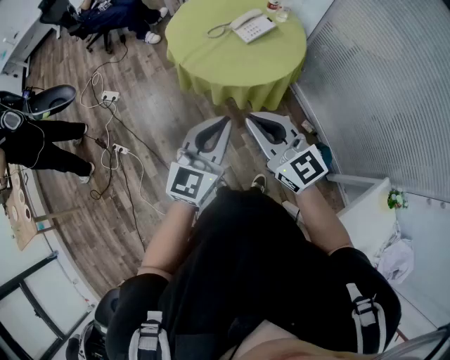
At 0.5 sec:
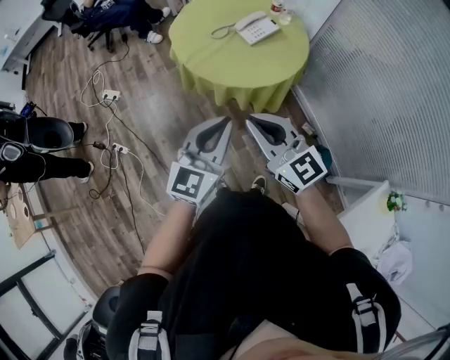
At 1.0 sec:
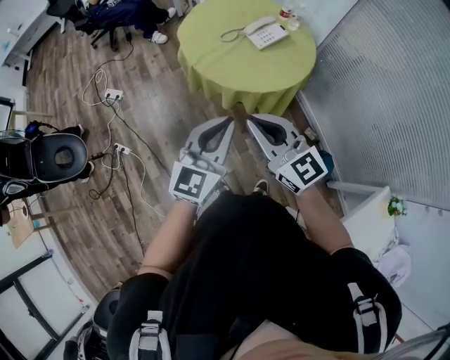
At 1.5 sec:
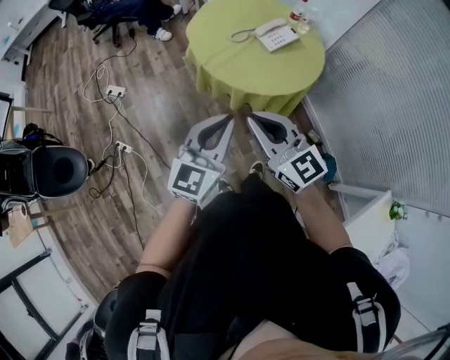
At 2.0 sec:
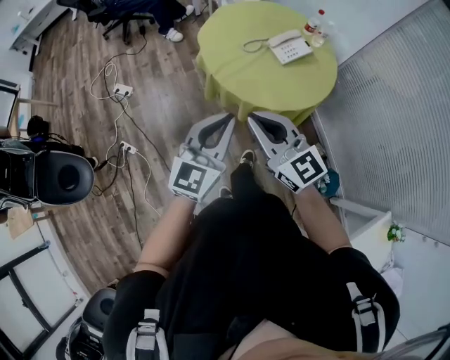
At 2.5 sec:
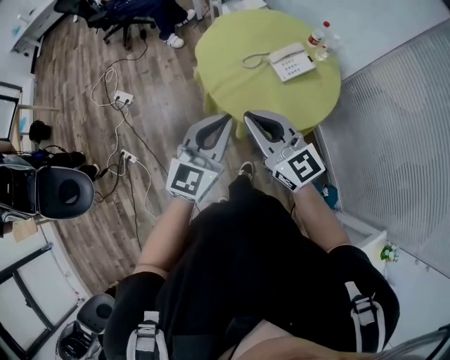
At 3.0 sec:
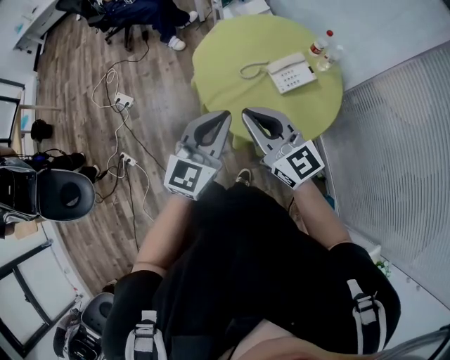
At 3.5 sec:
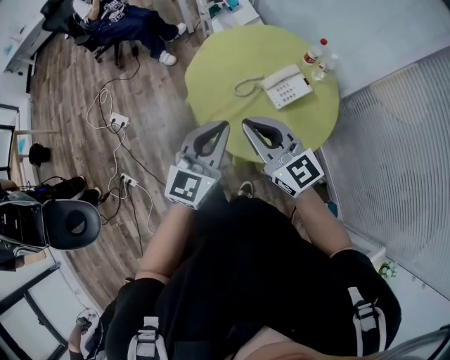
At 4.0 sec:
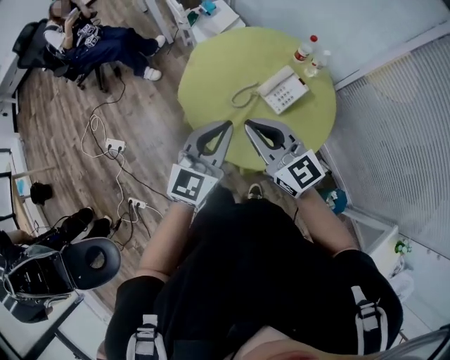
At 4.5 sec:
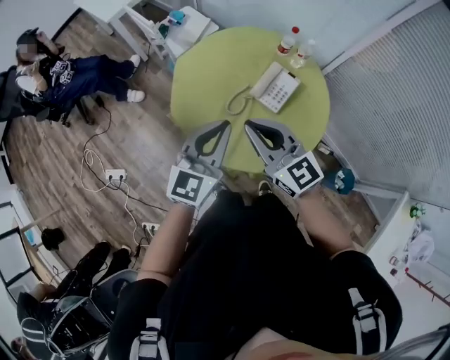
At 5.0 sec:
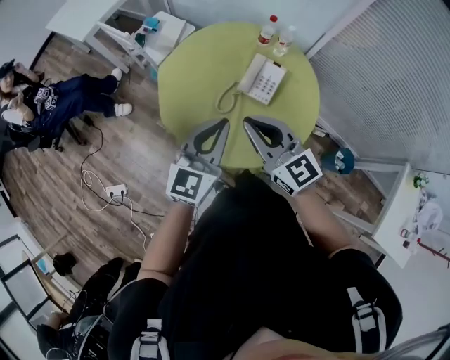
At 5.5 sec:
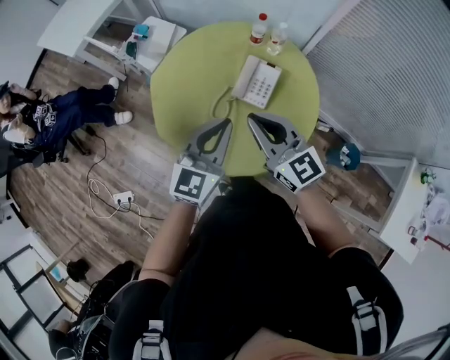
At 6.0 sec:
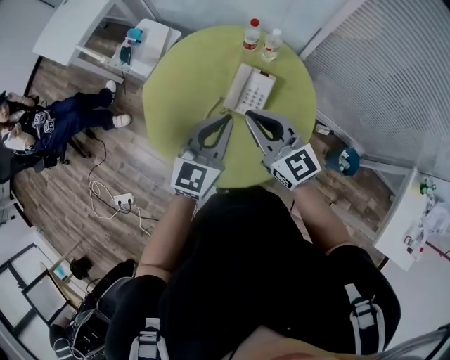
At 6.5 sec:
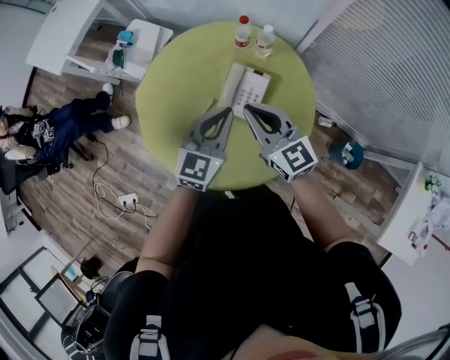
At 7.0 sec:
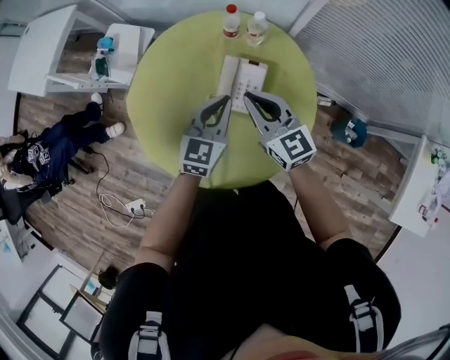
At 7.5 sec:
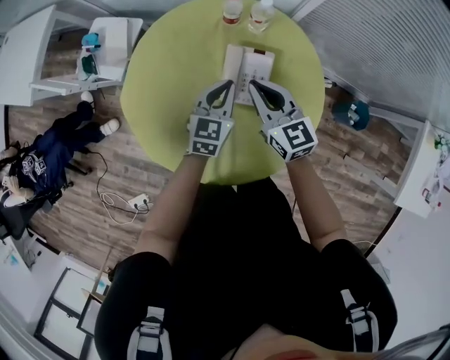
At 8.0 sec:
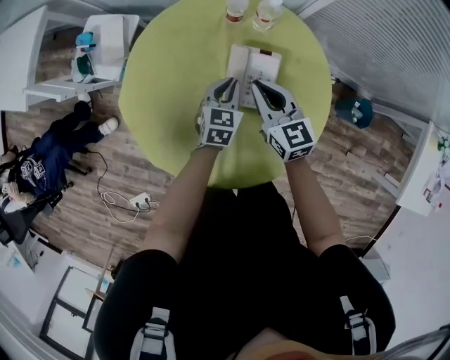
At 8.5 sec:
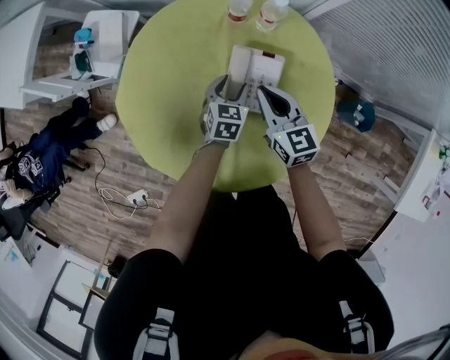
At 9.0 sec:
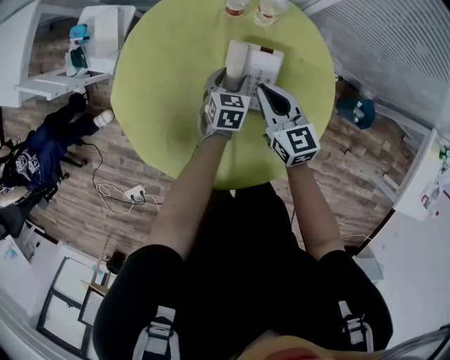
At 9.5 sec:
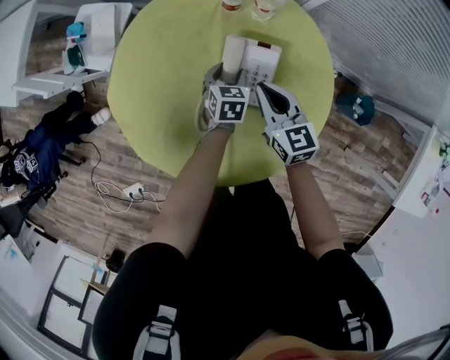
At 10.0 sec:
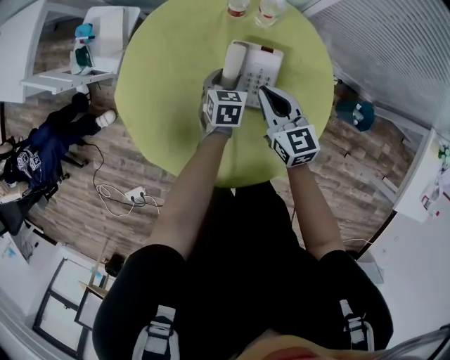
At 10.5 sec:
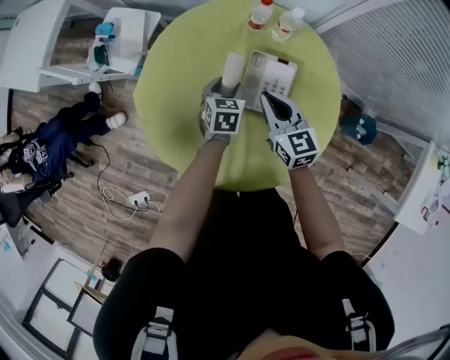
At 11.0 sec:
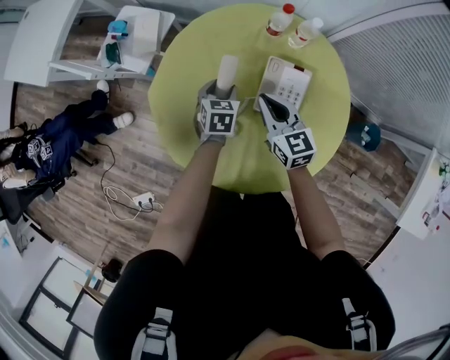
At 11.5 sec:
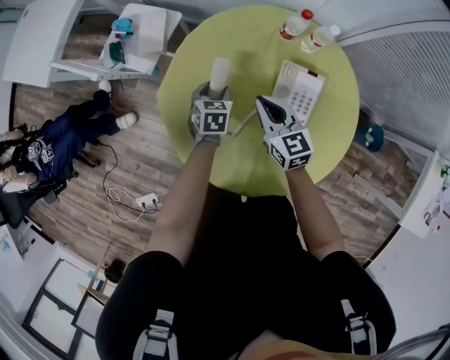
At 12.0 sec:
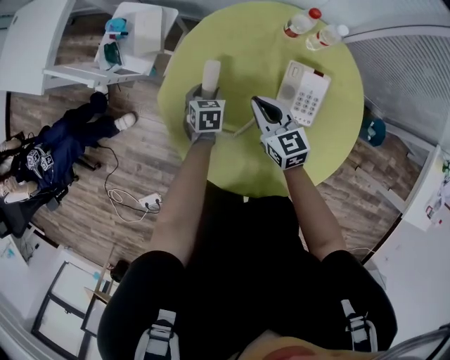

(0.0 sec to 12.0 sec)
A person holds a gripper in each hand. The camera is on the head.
0.0 sec - 2.0 sec: The right gripper goes roughly 15 cm to the left and forward. The left gripper moves forward and to the left, roughly 15 cm.
2.0 sec - 4.0 sec: Both grippers travel together forward, some 35 cm.
4.0 sec - 6.0 sec: The left gripper changes place by some 20 cm, and changes its angle by about 30 degrees. The right gripper changes place by some 20 cm, and swivels about 30 degrees.
6.0 sec - 8.0 sec: The two grippers go approximately 30 cm downward and forward. The left gripper swivels about 30 degrees. Meanwhile the right gripper changes its angle by some 30 degrees.
8.0 sec - 10.0 sec: The left gripper is displaced downward by some 5 cm, and opens its fingers.
10.0 sec - 12.0 sec: The two grippers go approximately 20 cm to the left.

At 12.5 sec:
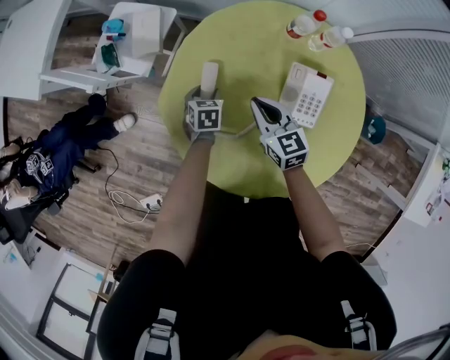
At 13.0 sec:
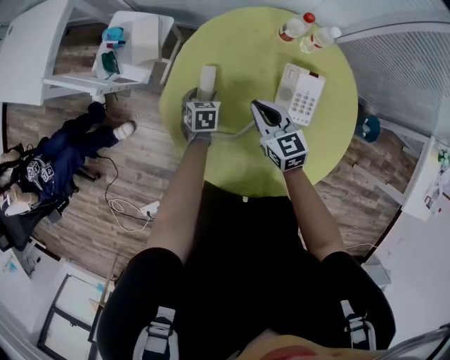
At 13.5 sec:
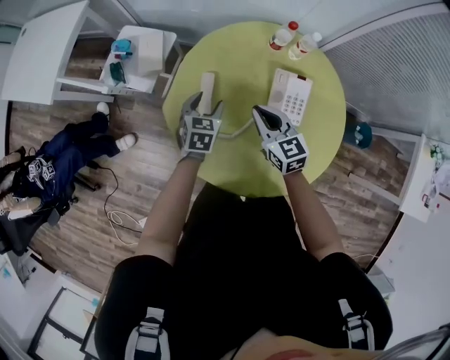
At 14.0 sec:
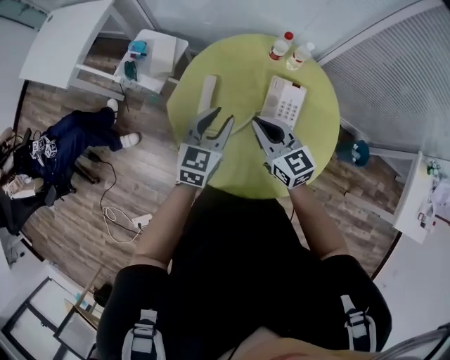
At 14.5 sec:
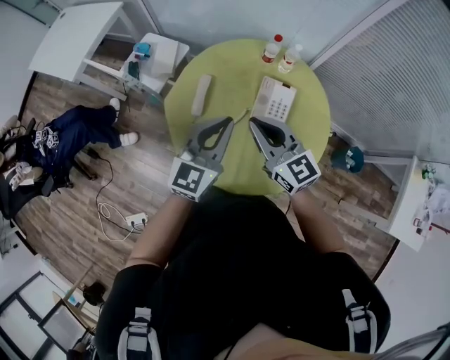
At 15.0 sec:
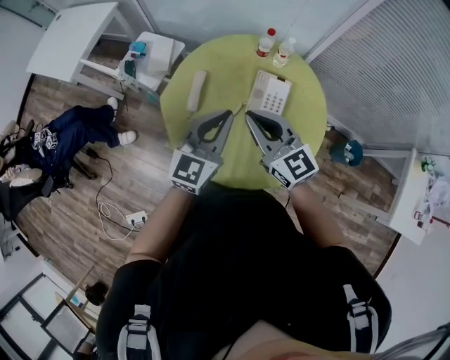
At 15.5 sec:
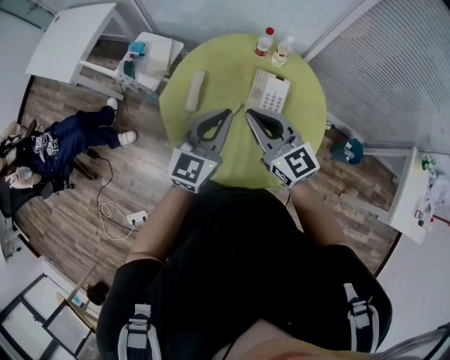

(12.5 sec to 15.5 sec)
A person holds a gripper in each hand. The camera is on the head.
12.5 sec - 14.0 sec: The right gripper shifts some 20 cm upward and backward, while the left gripper is displaced upward by some 35 cm, and angles its fingers upward, by about 40 degrees.
14.0 sec - 15.5 sec: The left gripper heads upward, backward and to the right, covering about 15 cm, and closes its fingers, while the right gripper shifts some 10 cm upward and backward.

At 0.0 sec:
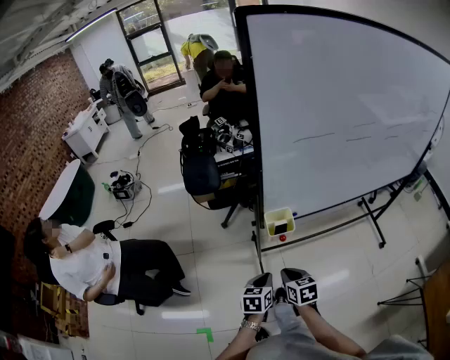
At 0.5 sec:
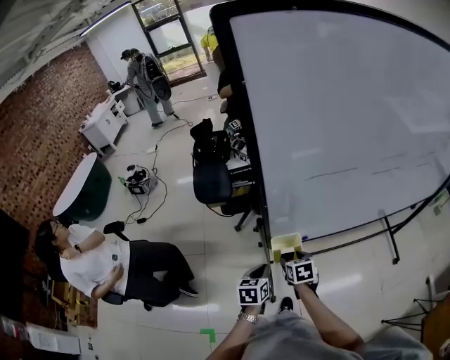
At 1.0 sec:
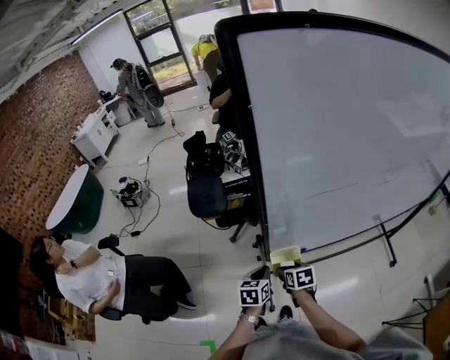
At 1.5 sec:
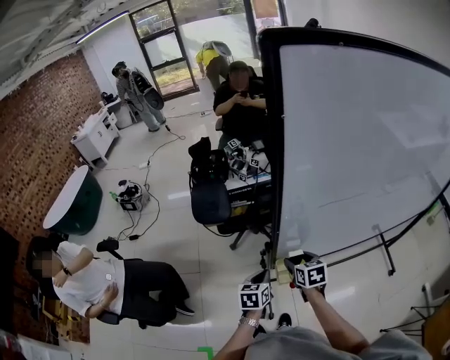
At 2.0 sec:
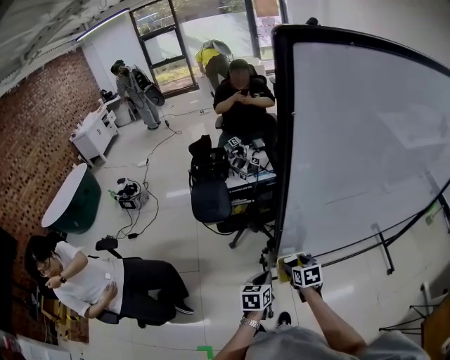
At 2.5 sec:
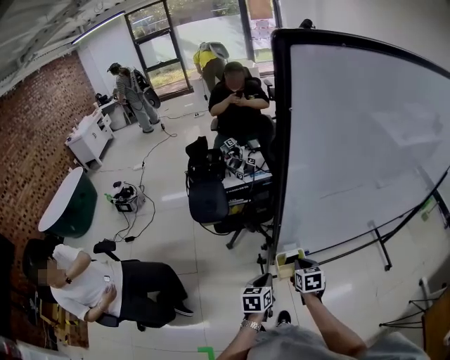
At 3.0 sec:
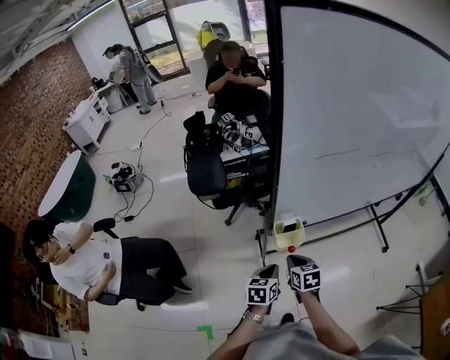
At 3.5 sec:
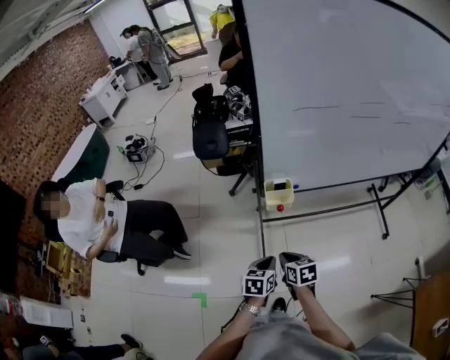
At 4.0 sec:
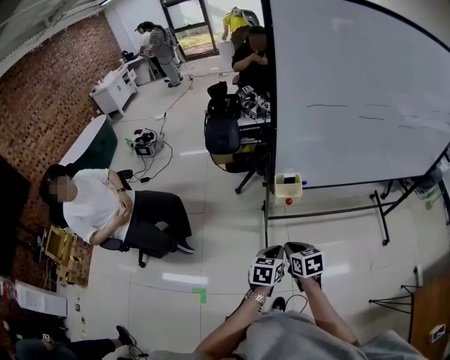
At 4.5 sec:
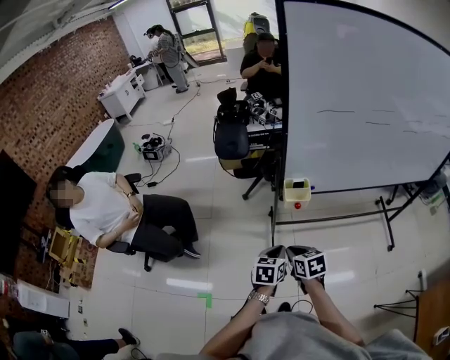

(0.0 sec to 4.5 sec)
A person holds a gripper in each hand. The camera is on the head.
0.0 sec - 2.0 sec: Both grippers travel together forward, some 20 cm. The right gripper opens its fingers.
2.0 sec - 4.5 sec: The two grippers go about 30 cm backward. The right gripper closes up.

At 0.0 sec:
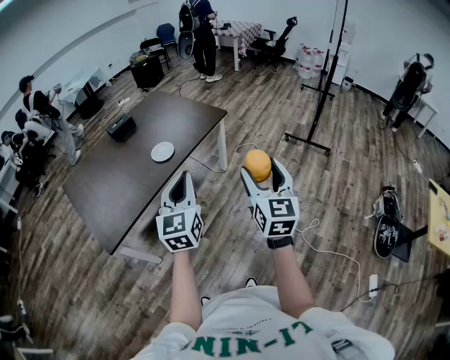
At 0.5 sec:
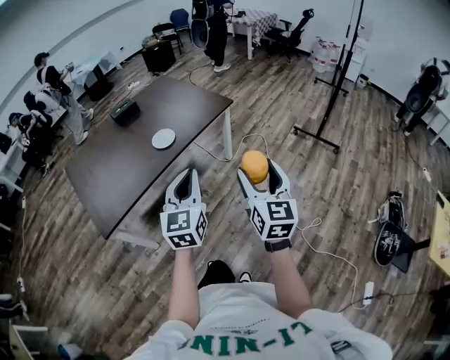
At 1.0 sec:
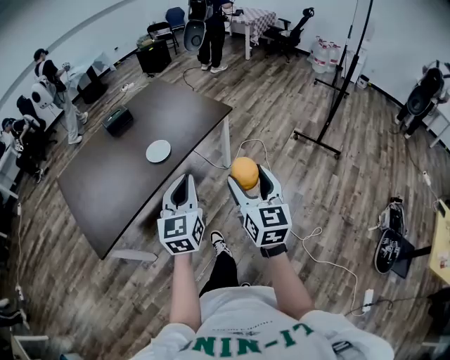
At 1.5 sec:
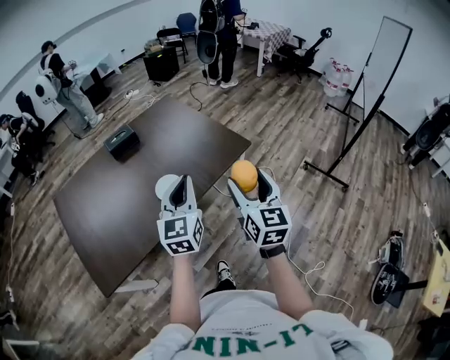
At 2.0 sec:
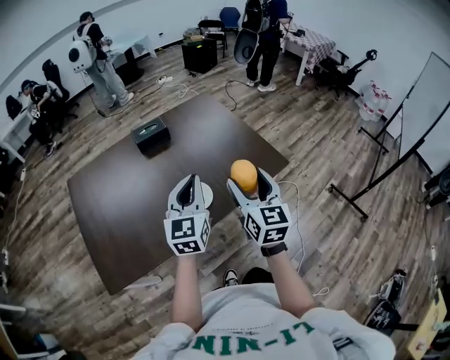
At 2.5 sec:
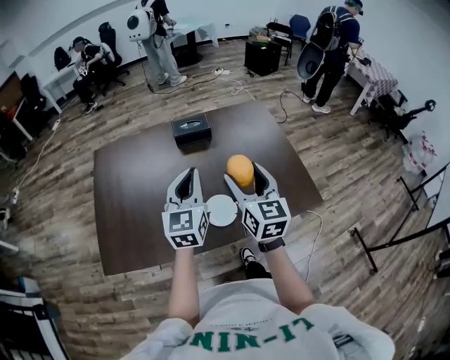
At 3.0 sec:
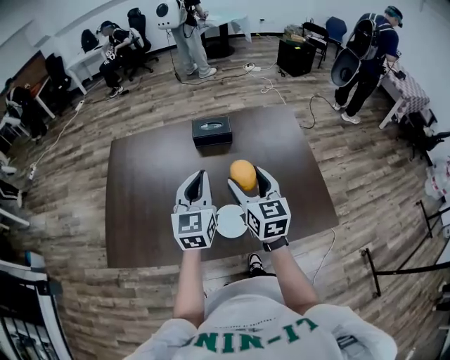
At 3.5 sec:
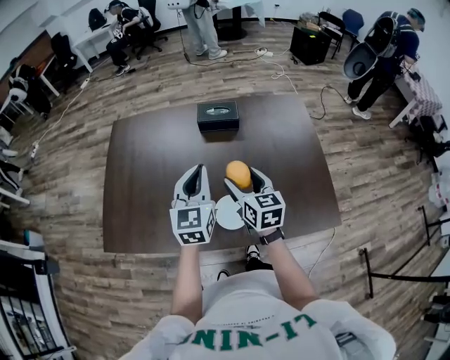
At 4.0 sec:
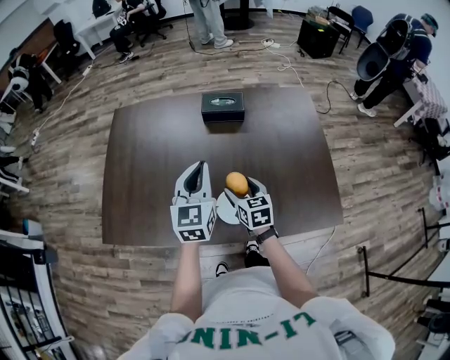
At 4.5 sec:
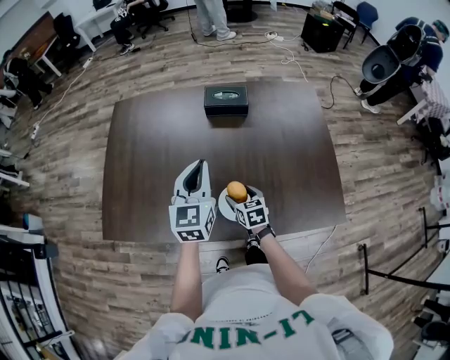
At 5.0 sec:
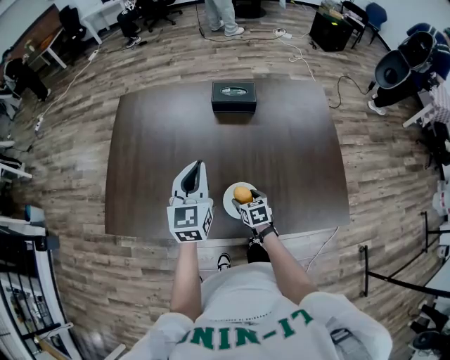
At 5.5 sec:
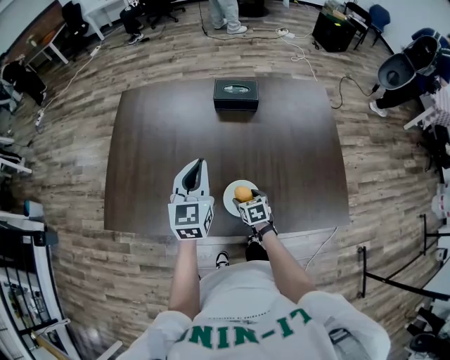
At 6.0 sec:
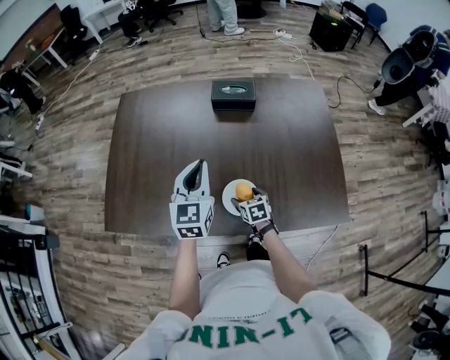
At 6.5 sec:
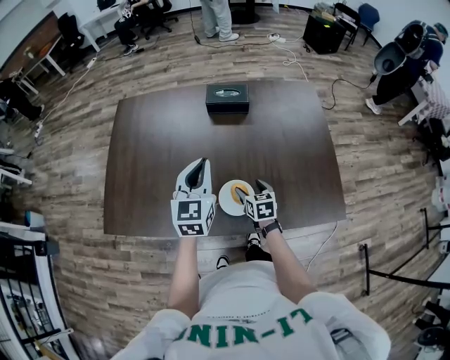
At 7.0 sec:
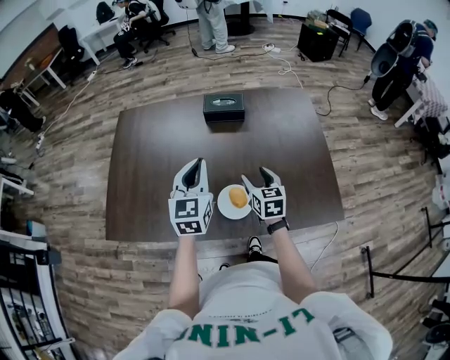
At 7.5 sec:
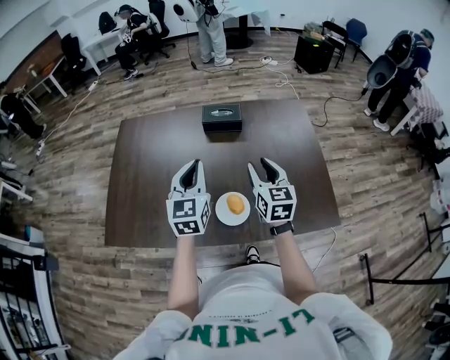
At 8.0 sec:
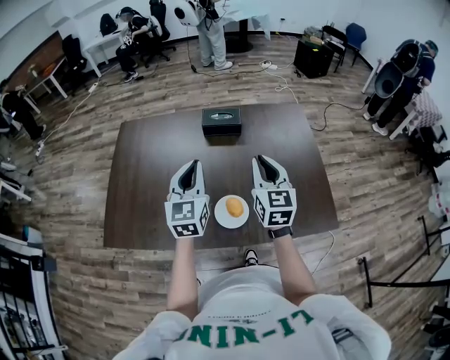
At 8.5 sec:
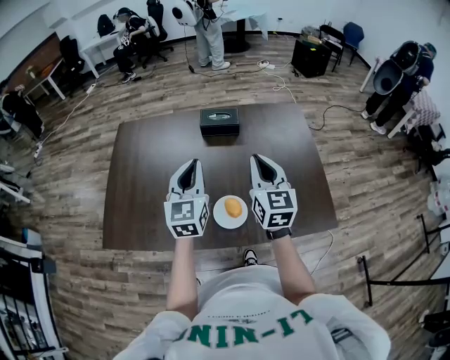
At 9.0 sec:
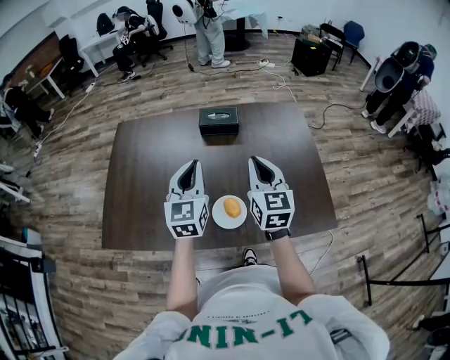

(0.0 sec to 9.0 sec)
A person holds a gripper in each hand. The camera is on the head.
0.0 sec - 2.0 sec: The pair of grippers is taken forward, roughly 50 cm. The right gripper changes its angle by approximately 30 degrees.
2.0 sec - 4.5 sec: The left gripper ends up approximately 25 cm from where it was, and changes its angle by approximately 30 degrees; the right gripper travels downward by approximately 35 cm, and angles its fingers downward, by about 40 degrees.
4.5 sec - 7.0 sec: The right gripper is displaced upward and to the right by about 15 cm.
7.0 sec - 9.0 sec: The right gripper travels upward by approximately 20 cm, changes its angle by approximately 20 degrees, and closes.
